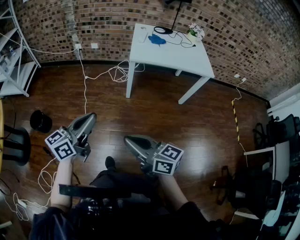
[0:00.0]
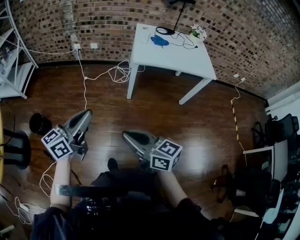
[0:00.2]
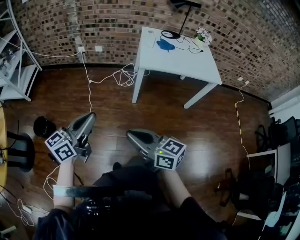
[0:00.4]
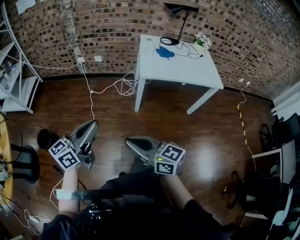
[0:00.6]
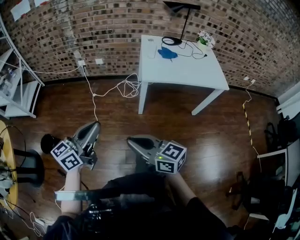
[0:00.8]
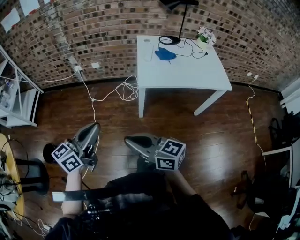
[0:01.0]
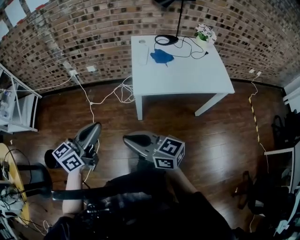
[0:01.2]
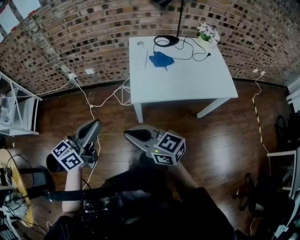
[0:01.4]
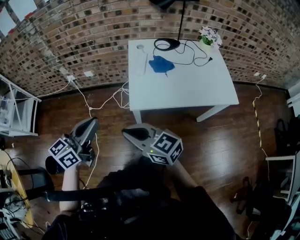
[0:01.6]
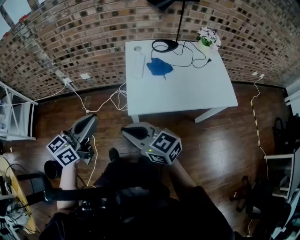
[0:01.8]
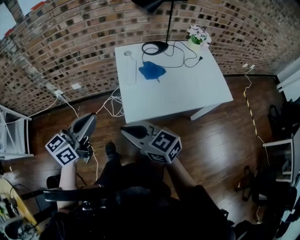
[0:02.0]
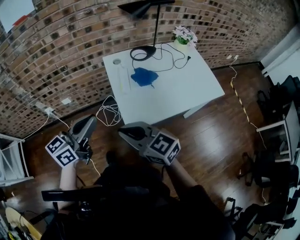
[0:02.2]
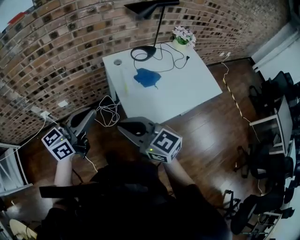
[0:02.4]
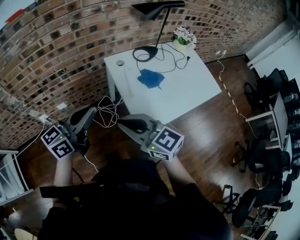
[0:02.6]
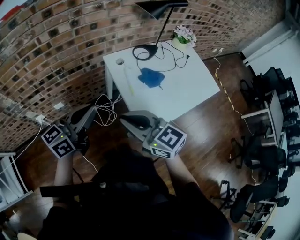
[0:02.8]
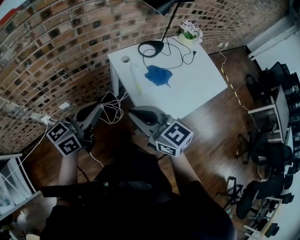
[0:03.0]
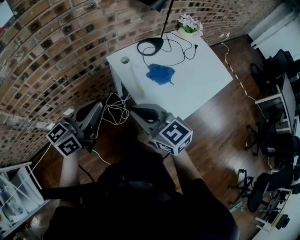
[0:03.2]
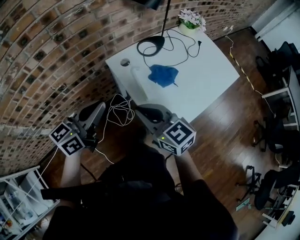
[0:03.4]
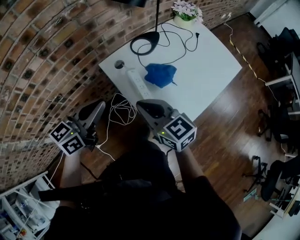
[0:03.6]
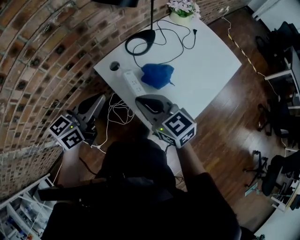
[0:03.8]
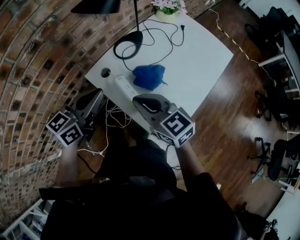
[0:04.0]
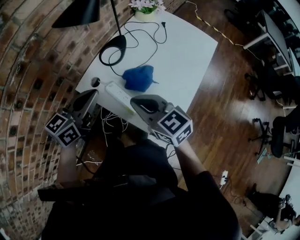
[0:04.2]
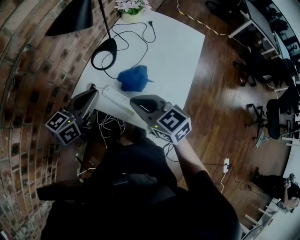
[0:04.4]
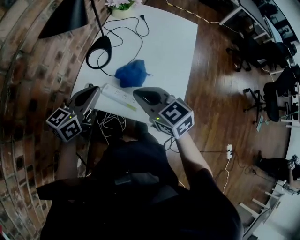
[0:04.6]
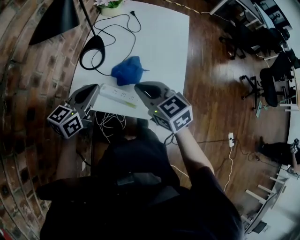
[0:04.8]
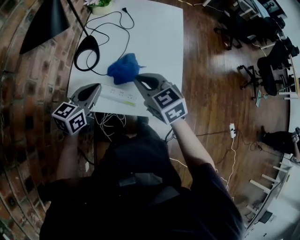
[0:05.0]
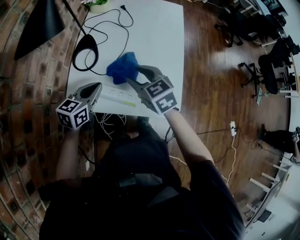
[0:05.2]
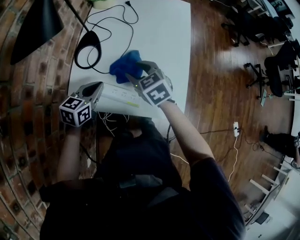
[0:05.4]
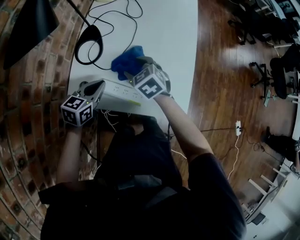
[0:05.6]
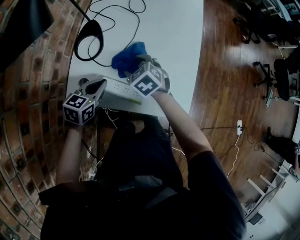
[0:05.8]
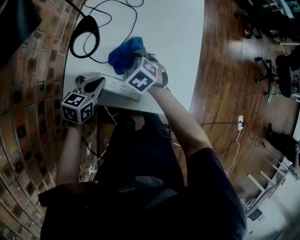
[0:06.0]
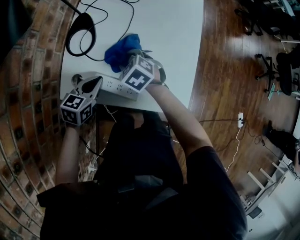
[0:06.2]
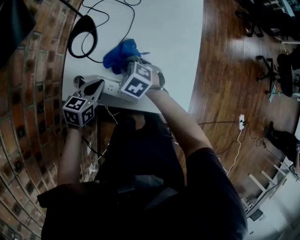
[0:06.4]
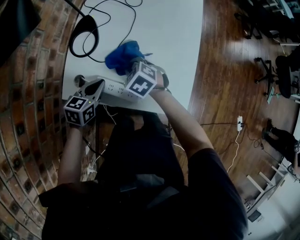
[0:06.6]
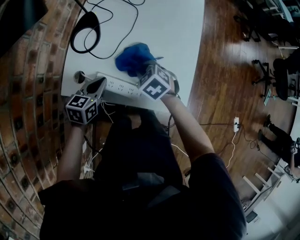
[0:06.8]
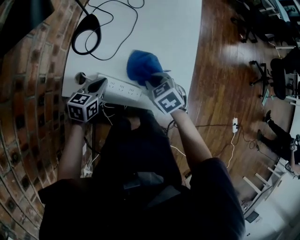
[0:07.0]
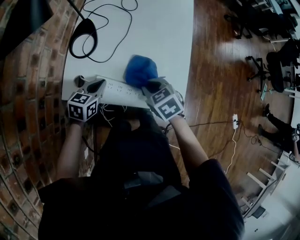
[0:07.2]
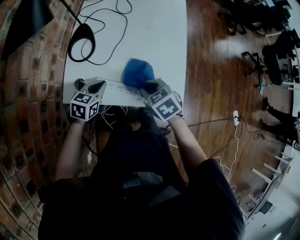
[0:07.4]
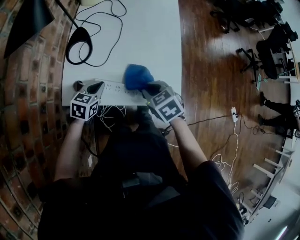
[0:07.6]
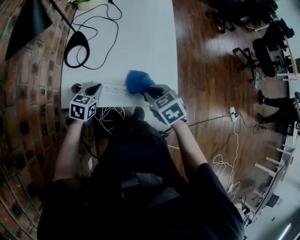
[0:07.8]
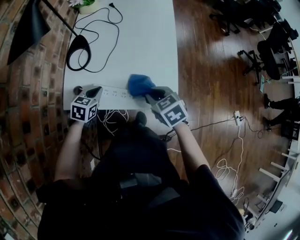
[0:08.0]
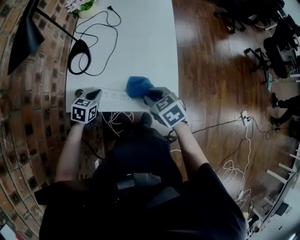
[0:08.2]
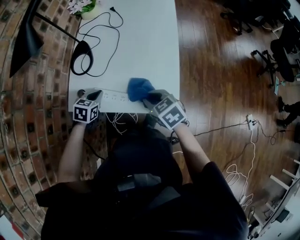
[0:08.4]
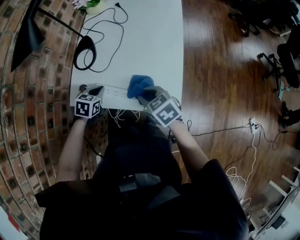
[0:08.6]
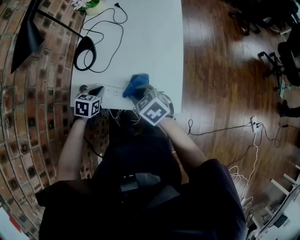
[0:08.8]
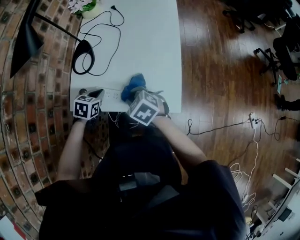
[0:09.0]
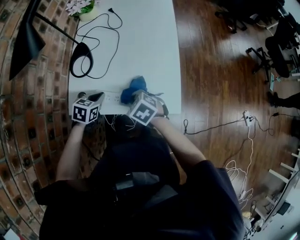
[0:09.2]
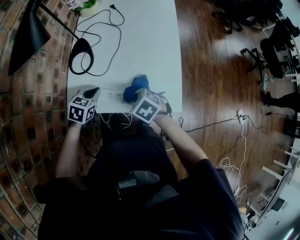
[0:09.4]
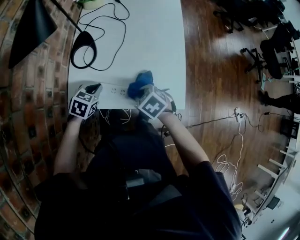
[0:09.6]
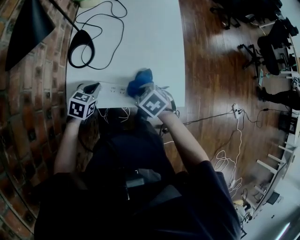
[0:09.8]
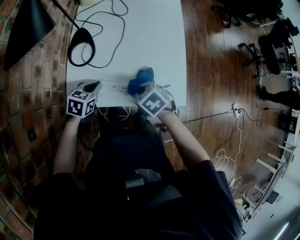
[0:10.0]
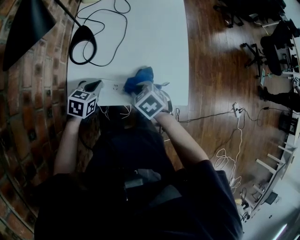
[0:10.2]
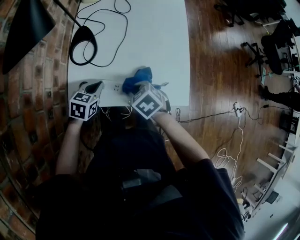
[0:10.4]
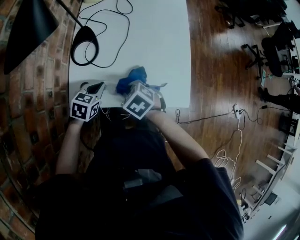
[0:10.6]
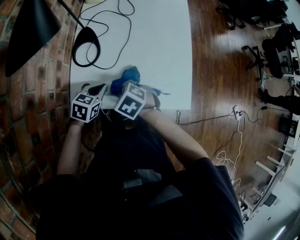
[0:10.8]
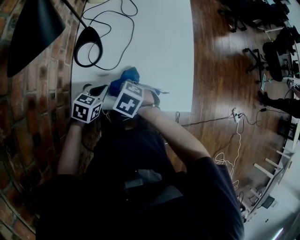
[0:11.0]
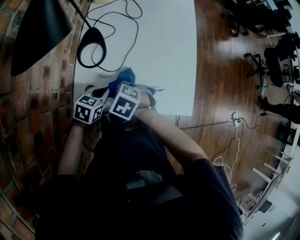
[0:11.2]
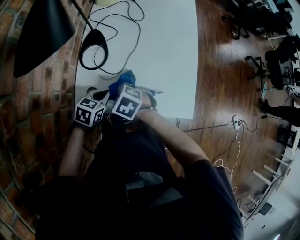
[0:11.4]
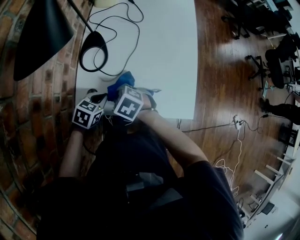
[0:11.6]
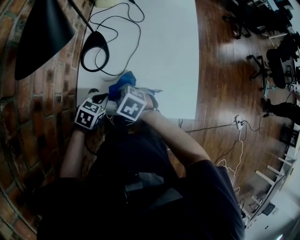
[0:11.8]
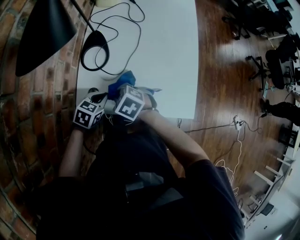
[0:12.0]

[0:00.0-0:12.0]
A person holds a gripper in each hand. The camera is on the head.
0:00.0 to 0:01.6: Both grippers are carried forward, about 50 cm.
0:01.6 to 0:03.0: The left gripper shifts by some 35 cm, and turns by about 30 degrees, while the right gripper shifts by some 30 cm, and rotates some 40 degrees.
0:03.0 to 0:04.4: The left gripper ends up some 30 cm from where it was, and turns by some 40 degrees; the right gripper moves about 25 cm, and changes its angle by about 40 degrees.
0:04.4 to 0:06.0: The right gripper shifts some 30 cm downward and forward, angles its fingers downward, by some 30 degrees, and opens its fingers. Meanwhile the left gripper heads downward, covering roughly 20 cm, and turns by roughly 30 degrees.
0:06.0 to 0:07.6: The right gripper goes about 20 cm backward, to the right and upward, and closes its fingers.
0:07.6 to 0:09.0: The right gripper ends up some 5 cm from where it was.
0:09.0 to 0:10.4: The grippers make only small movements.
0:10.4 to 0:12.0: The right gripper heads to the left, covering some 10 cm.

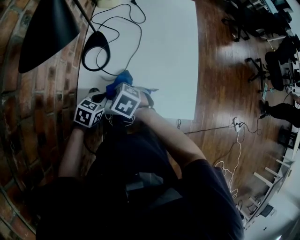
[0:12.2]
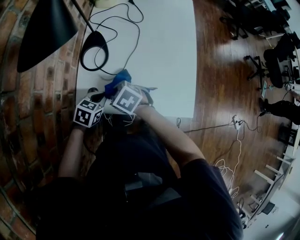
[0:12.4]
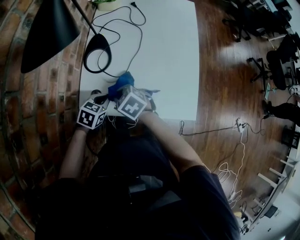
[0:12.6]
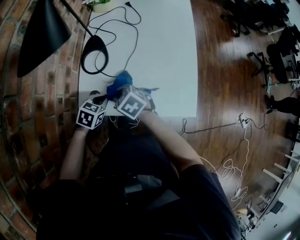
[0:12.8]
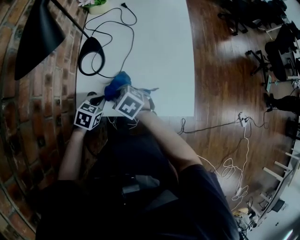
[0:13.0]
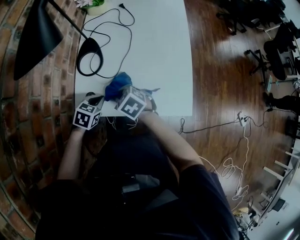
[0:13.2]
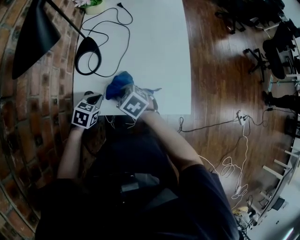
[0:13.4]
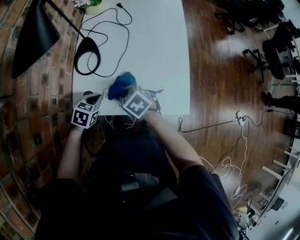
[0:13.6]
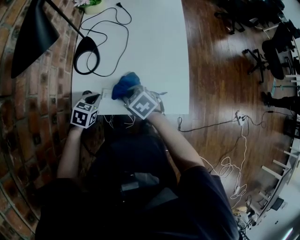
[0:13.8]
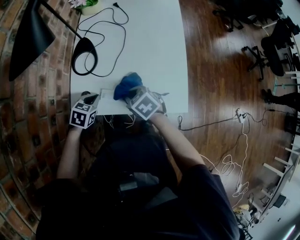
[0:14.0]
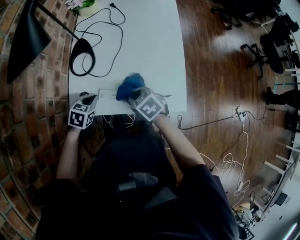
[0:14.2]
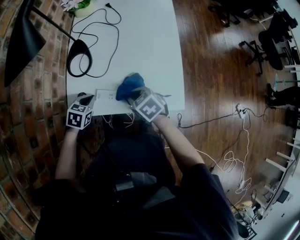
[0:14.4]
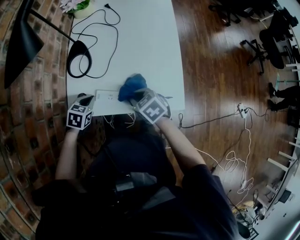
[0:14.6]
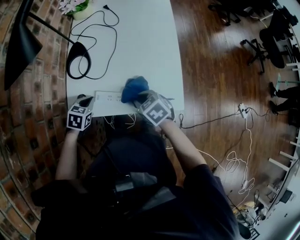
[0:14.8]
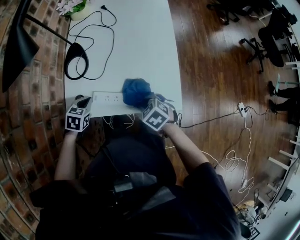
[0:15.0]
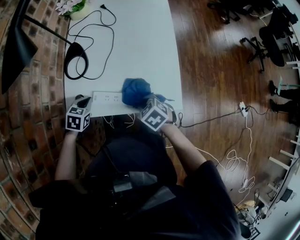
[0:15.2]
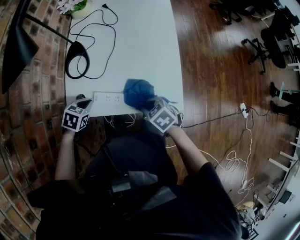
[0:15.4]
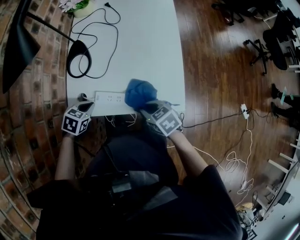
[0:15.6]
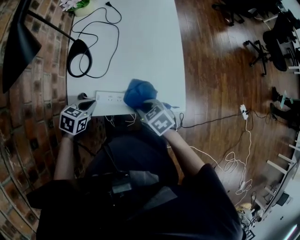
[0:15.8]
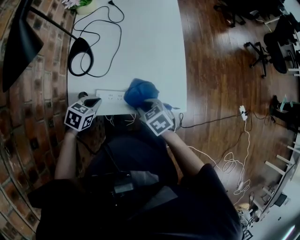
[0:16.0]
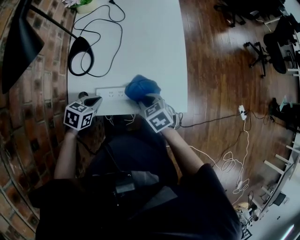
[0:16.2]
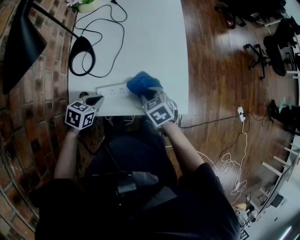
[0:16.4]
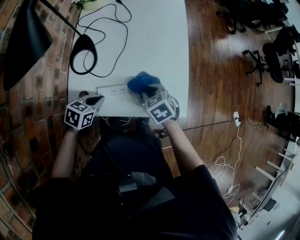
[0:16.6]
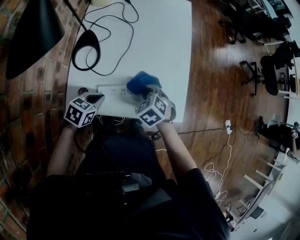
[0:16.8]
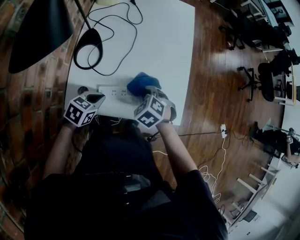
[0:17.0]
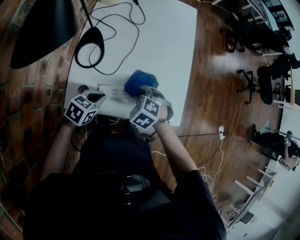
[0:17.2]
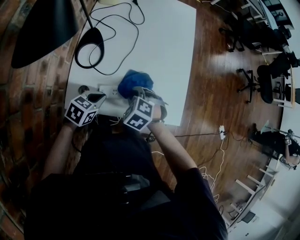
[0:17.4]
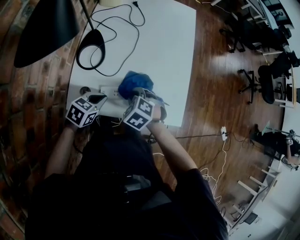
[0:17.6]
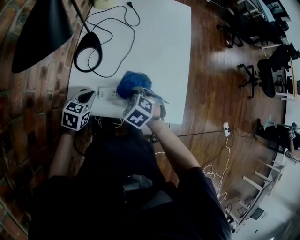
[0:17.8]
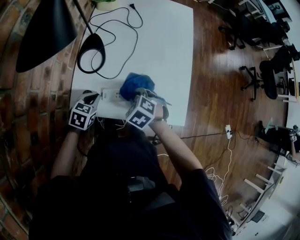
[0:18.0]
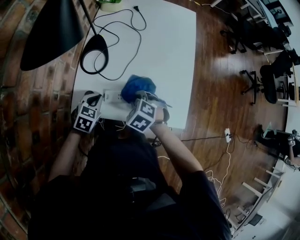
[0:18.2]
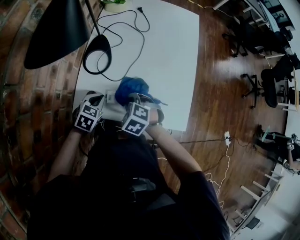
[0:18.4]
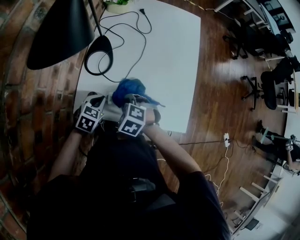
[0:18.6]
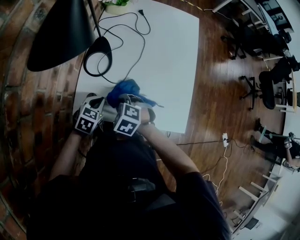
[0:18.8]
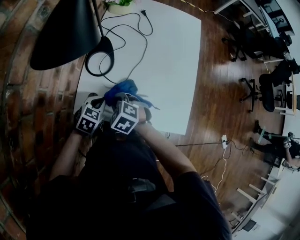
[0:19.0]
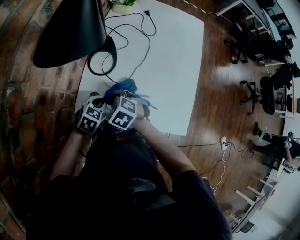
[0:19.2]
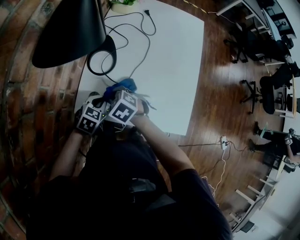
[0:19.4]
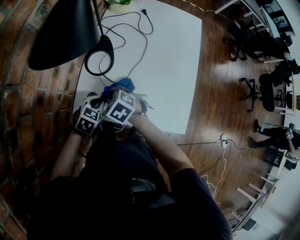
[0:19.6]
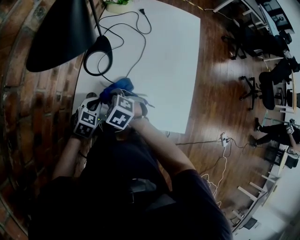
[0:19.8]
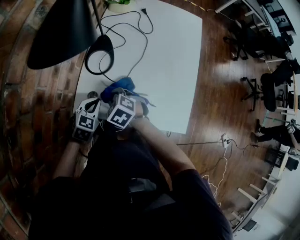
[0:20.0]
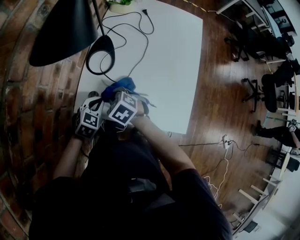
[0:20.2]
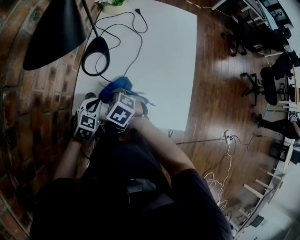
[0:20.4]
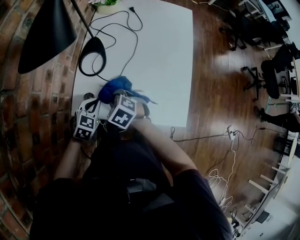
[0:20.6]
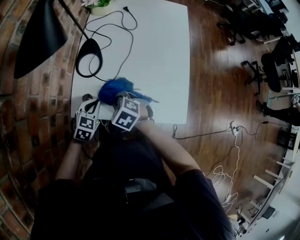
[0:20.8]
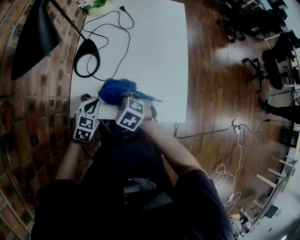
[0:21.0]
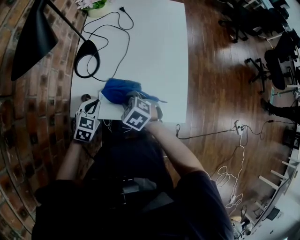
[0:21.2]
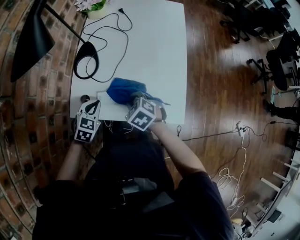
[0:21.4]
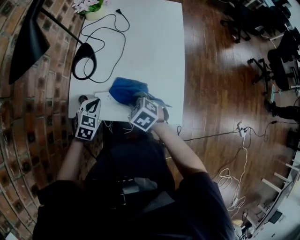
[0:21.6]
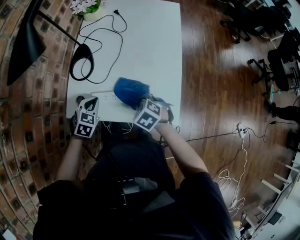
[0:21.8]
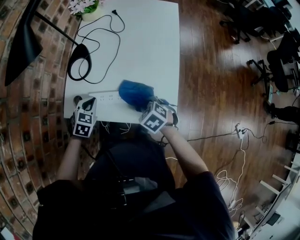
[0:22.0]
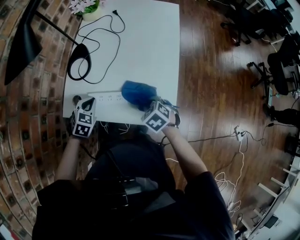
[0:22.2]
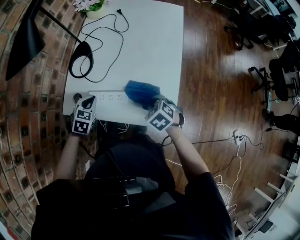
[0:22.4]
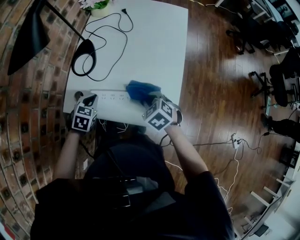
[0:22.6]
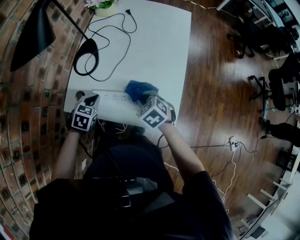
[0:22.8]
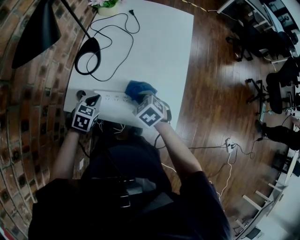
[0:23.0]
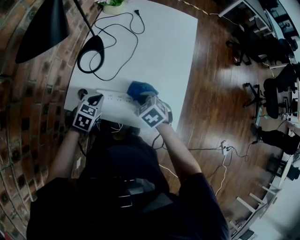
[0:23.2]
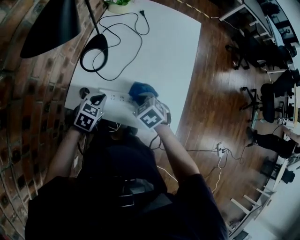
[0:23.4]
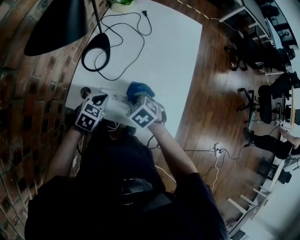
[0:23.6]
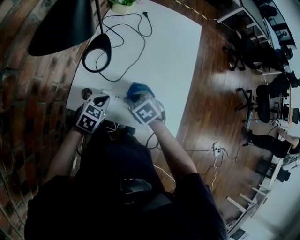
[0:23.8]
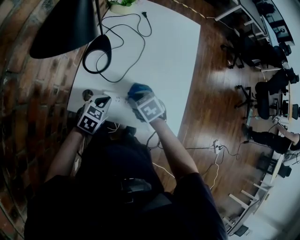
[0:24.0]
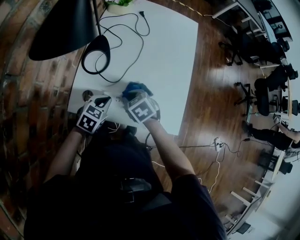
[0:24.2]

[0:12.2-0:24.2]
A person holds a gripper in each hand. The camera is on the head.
0:12.2 to 0:13.8: The right gripper moves to the right, about 10 cm.
0:13.8 to 0:15.2: The right gripper shifts roughly 10 cm to the right and backward.
0:15.2 to 0:16.6: The right gripper travels forward by some 10 cm, while the left gripper turns by approximately 20 degrees.
0:16.6 to 0:18.2: The right gripper heads to the left, covering some 10 cm, and turns by roughly 30 degrees.
0:18.2 to 0:19.8: The right gripper heads to the left, covering some 10 cm.
0:19.8 to 0:21.2: The right gripper heads to the right and backward, covering about 10 cm.
0:21.2 to 0:22.6: The right gripper moves to the right, roughly 15 cm.
0:22.6 to 0:24.2: The right gripper is displaced to the left by about 15 cm, while the left gripper rotates some 20 degrees.
